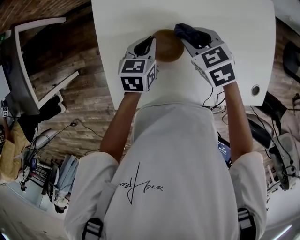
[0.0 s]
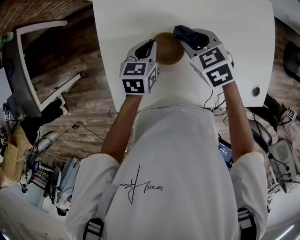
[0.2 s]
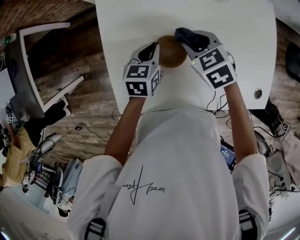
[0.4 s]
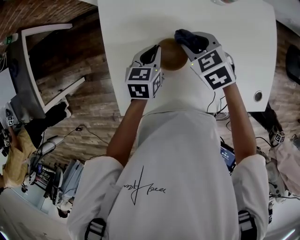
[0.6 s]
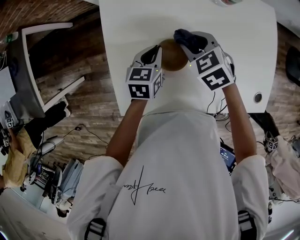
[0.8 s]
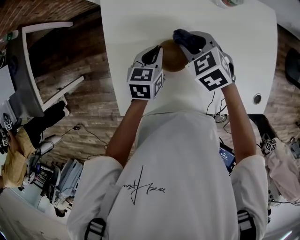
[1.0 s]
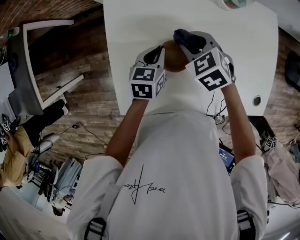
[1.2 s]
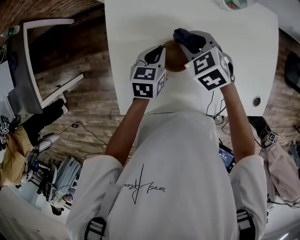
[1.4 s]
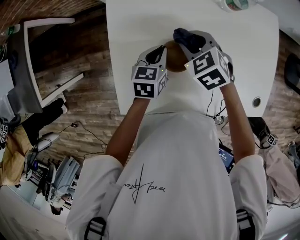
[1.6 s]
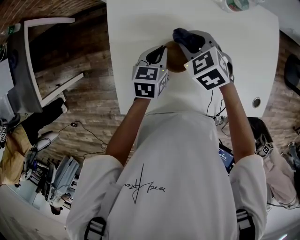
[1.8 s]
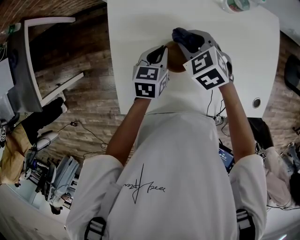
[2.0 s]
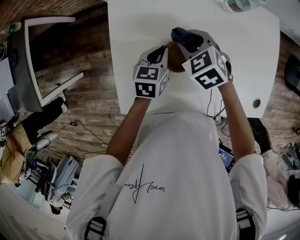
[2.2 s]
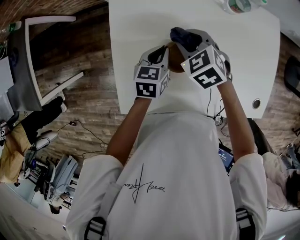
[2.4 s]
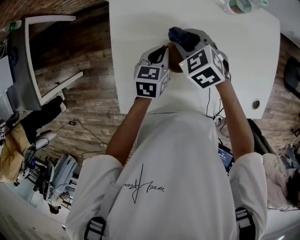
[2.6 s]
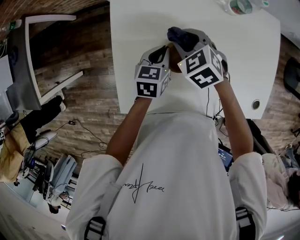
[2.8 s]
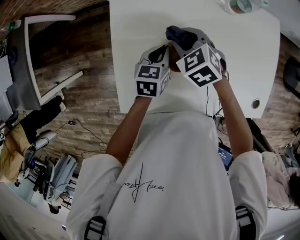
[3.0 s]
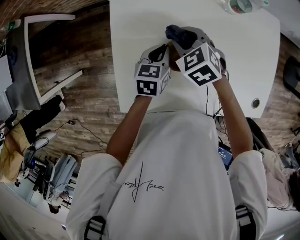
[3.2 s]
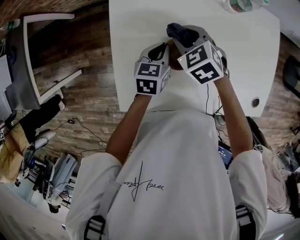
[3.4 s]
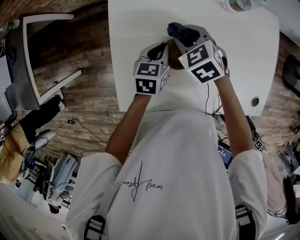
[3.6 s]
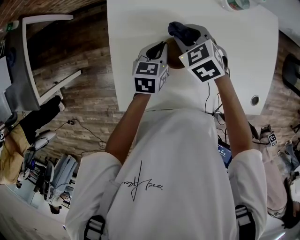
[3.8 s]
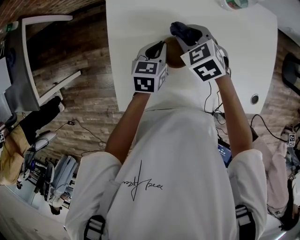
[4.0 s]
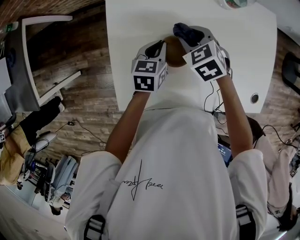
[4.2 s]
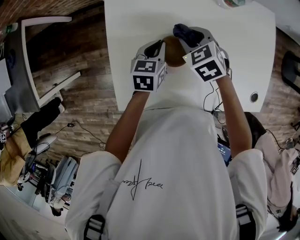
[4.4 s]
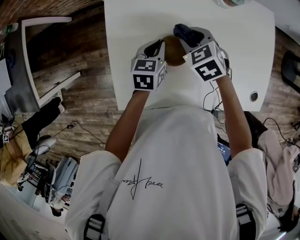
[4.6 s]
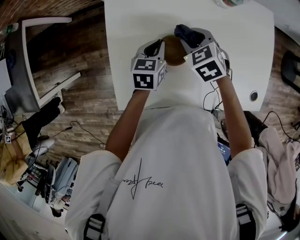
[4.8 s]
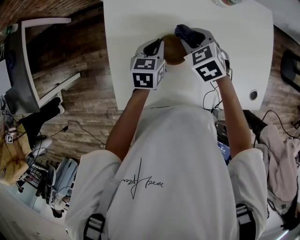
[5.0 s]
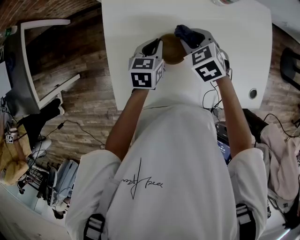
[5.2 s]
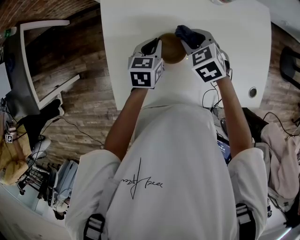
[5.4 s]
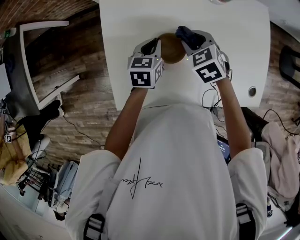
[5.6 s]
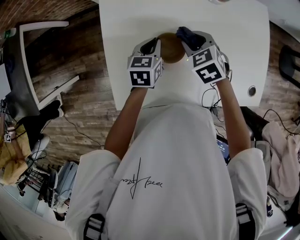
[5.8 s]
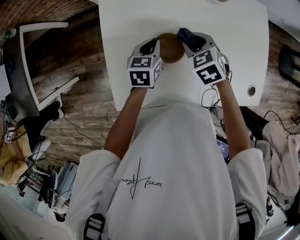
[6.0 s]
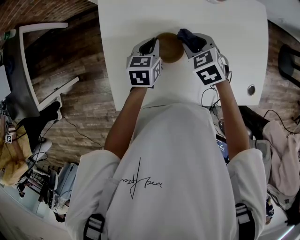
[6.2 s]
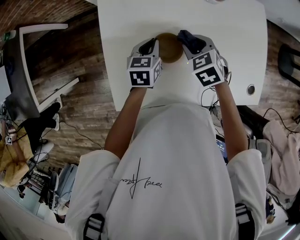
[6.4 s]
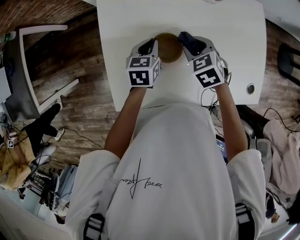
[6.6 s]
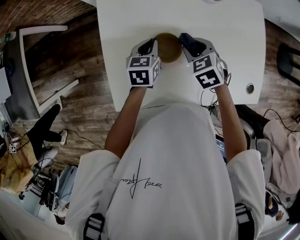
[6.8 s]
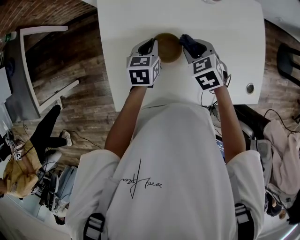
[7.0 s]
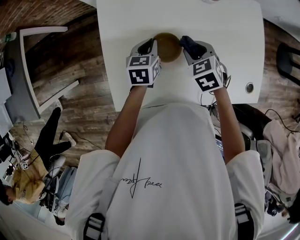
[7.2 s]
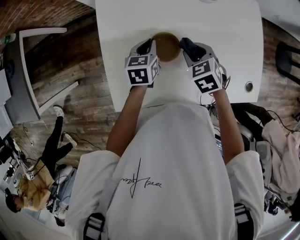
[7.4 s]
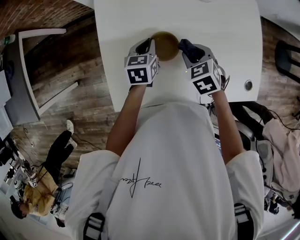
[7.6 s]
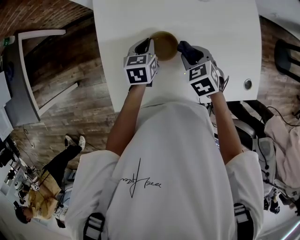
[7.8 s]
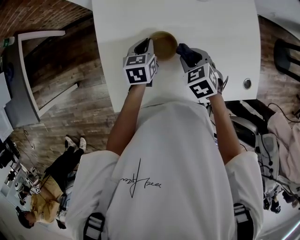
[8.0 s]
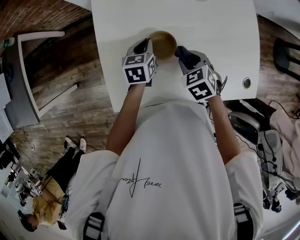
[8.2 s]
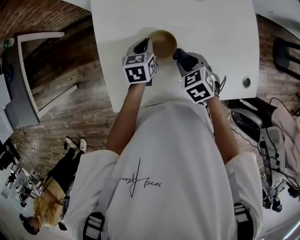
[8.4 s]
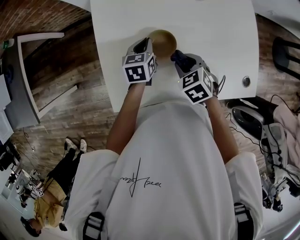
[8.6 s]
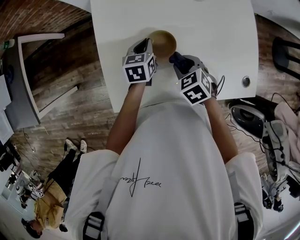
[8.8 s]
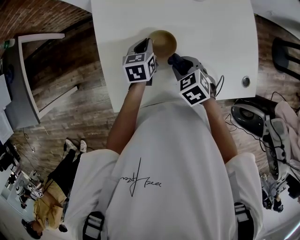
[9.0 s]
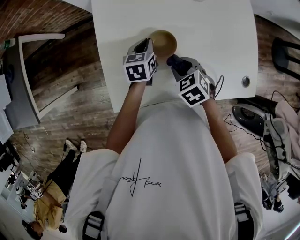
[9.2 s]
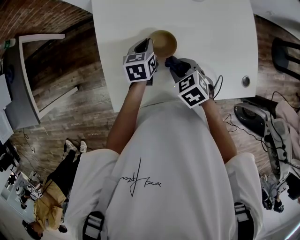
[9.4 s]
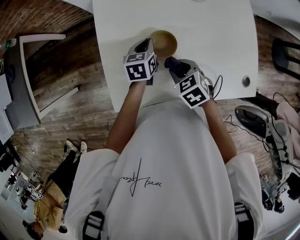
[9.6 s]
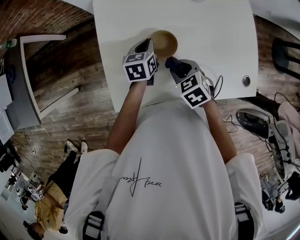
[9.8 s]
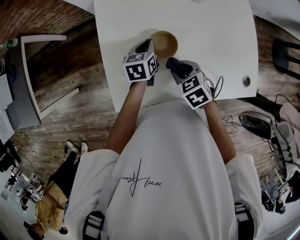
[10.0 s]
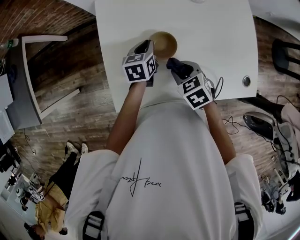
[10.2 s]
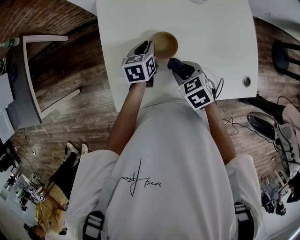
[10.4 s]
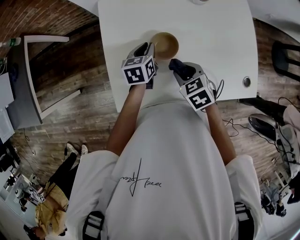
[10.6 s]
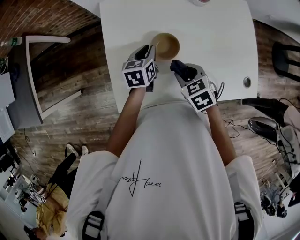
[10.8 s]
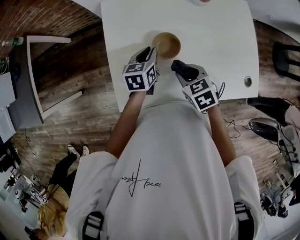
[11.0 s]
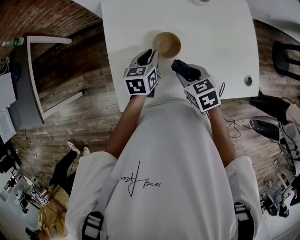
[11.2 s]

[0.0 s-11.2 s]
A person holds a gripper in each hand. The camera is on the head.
0.0 to 1.6 s: The right gripper shifts about 10 cm to the left and forward.
1.6 to 3.2 s: There are only small adjustments of the grippers.
3.2 to 4.8 s: The right gripper goes roughly 5 cm to the right.
4.8 to 6.4 s: The right gripper shifts about 5 cm to the right.
6.4 to 8.0 s: The right gripper heads backward, covering roughly 5 cm.
8.0 to 9.6 s: The right gripper shifts by some 5 cm.
9.6 to 11.2 s: The left gripper moves approximately 5 cm.

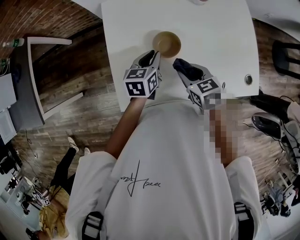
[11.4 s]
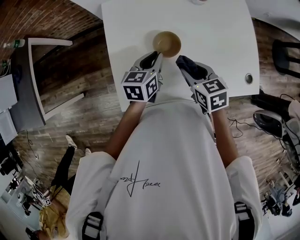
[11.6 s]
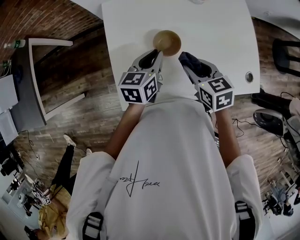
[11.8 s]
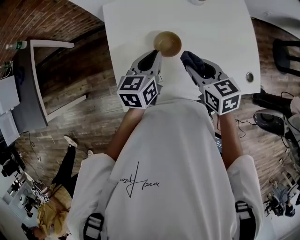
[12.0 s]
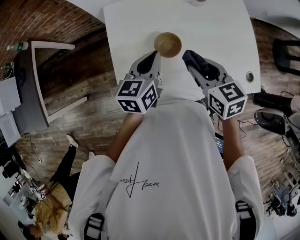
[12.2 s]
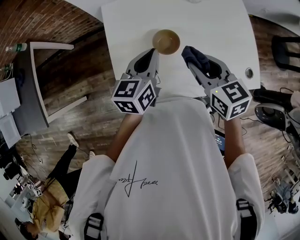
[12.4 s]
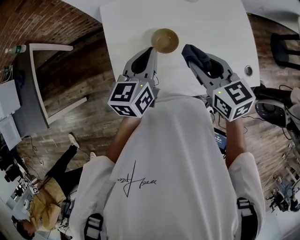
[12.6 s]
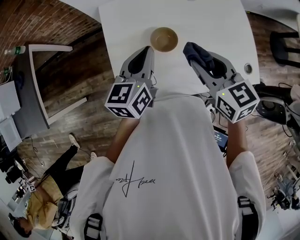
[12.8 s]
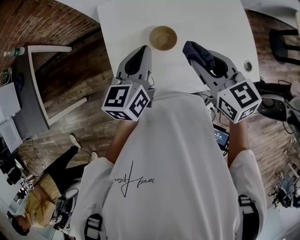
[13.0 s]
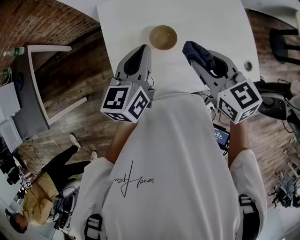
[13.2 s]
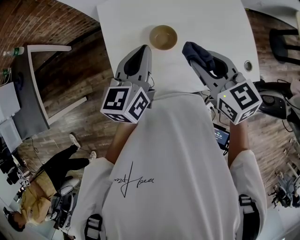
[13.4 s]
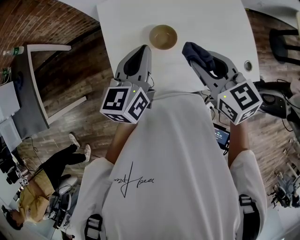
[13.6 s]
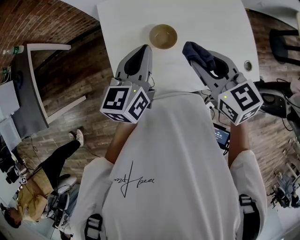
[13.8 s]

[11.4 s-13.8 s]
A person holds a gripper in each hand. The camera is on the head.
11.4 to 12.6 s: The two grippers go approximately 15 cm upward. The right gripper turns by approximately 20 degrees.
12.6 to 13.8 s: There are only small adjustments of the grippers.

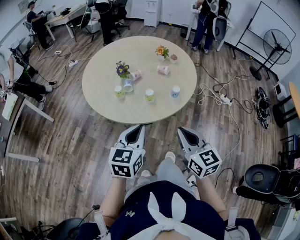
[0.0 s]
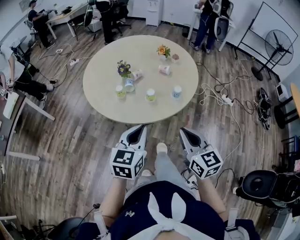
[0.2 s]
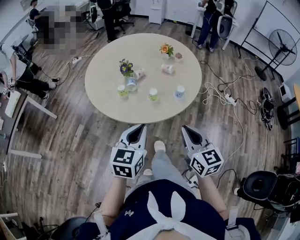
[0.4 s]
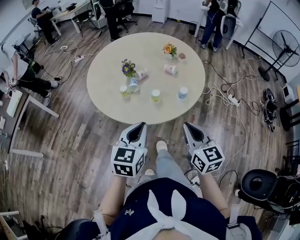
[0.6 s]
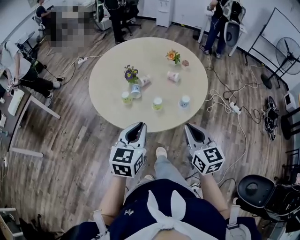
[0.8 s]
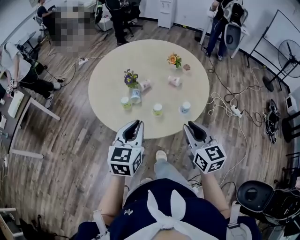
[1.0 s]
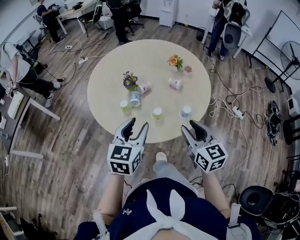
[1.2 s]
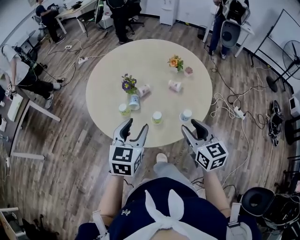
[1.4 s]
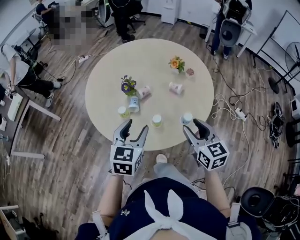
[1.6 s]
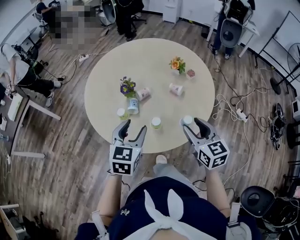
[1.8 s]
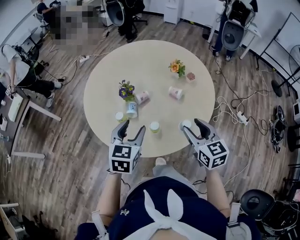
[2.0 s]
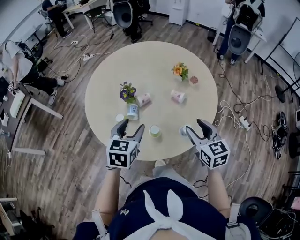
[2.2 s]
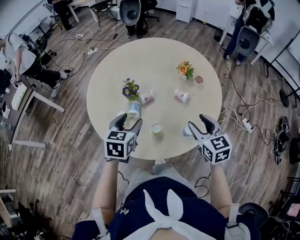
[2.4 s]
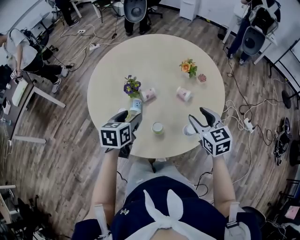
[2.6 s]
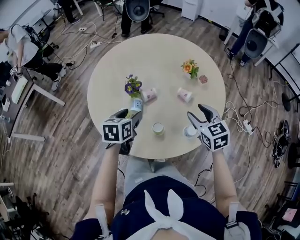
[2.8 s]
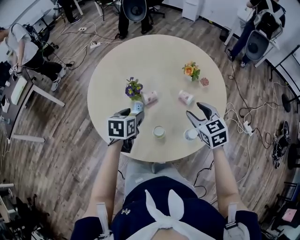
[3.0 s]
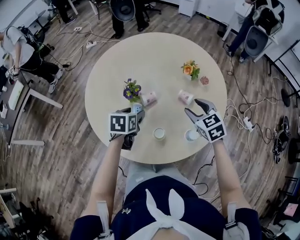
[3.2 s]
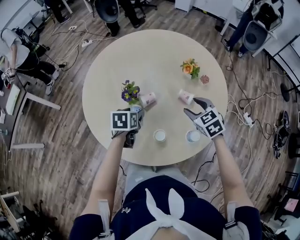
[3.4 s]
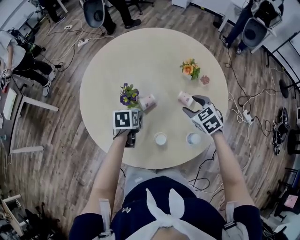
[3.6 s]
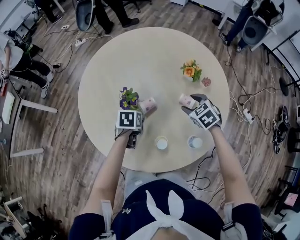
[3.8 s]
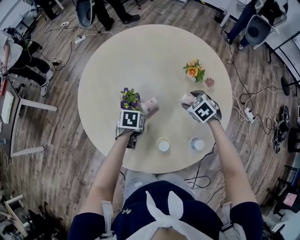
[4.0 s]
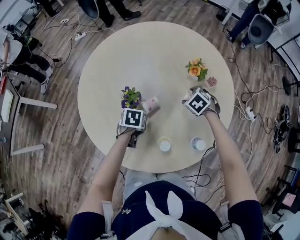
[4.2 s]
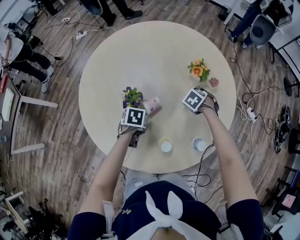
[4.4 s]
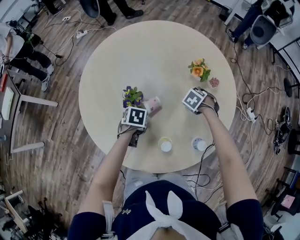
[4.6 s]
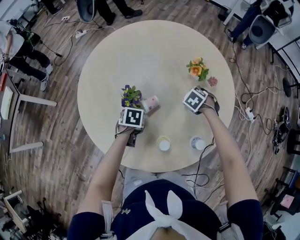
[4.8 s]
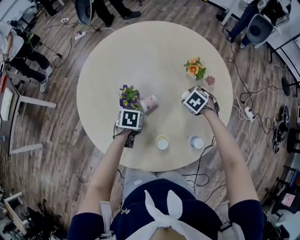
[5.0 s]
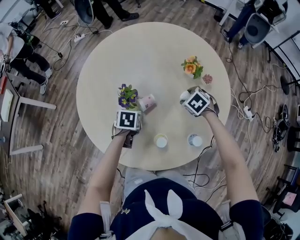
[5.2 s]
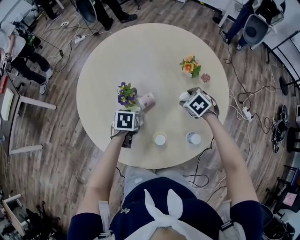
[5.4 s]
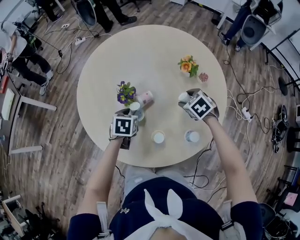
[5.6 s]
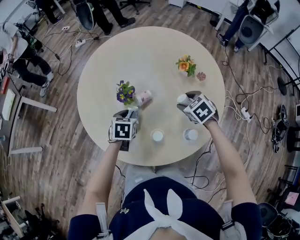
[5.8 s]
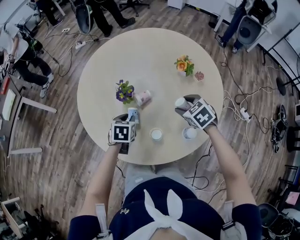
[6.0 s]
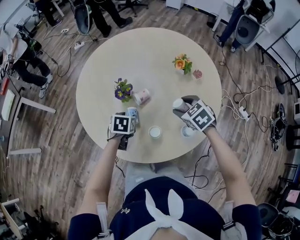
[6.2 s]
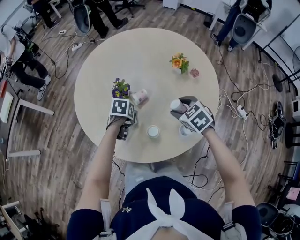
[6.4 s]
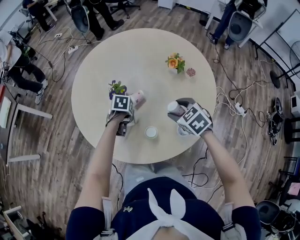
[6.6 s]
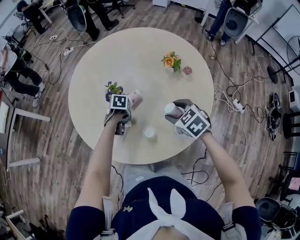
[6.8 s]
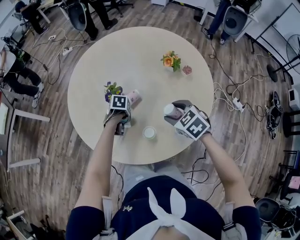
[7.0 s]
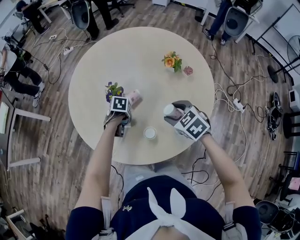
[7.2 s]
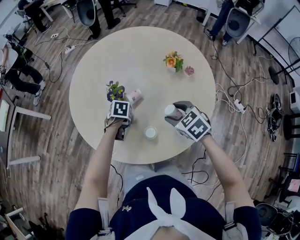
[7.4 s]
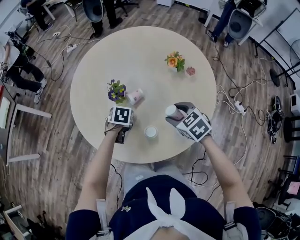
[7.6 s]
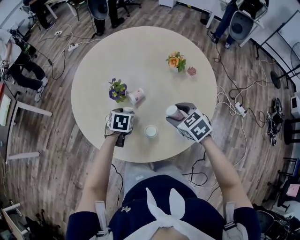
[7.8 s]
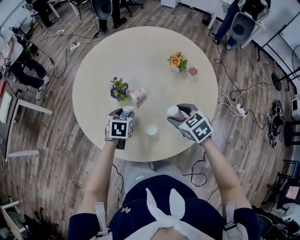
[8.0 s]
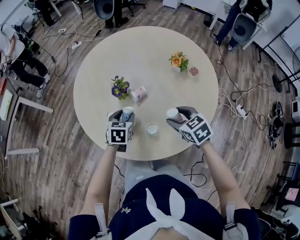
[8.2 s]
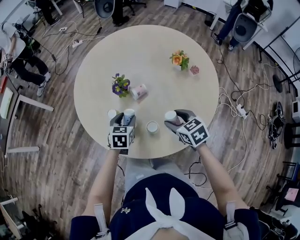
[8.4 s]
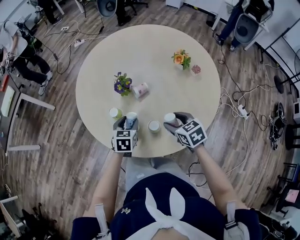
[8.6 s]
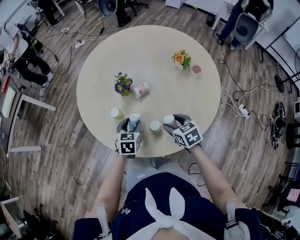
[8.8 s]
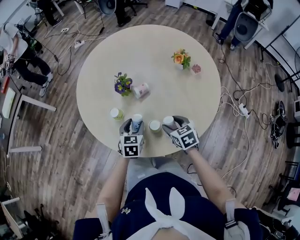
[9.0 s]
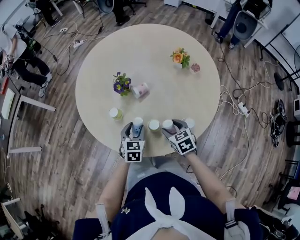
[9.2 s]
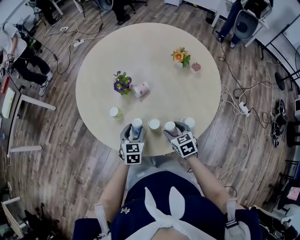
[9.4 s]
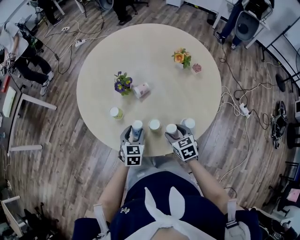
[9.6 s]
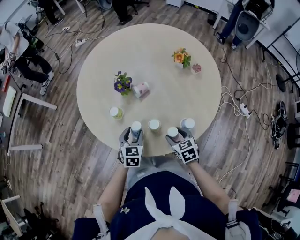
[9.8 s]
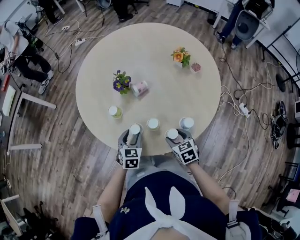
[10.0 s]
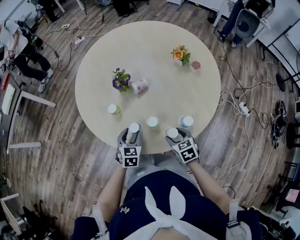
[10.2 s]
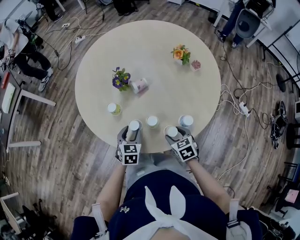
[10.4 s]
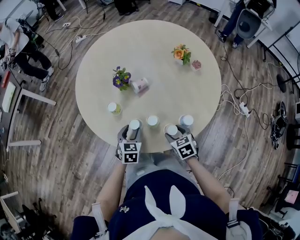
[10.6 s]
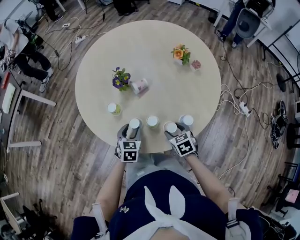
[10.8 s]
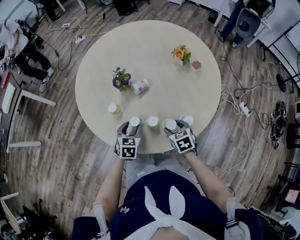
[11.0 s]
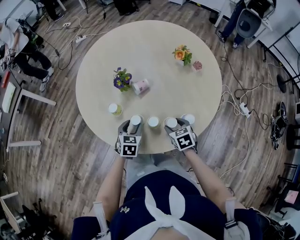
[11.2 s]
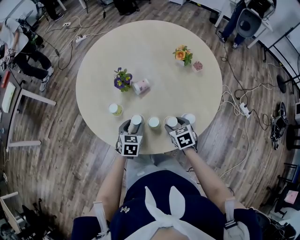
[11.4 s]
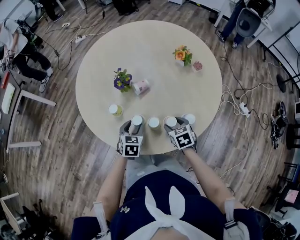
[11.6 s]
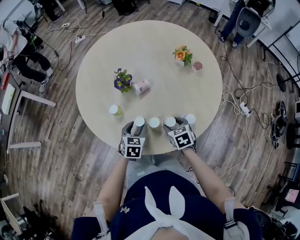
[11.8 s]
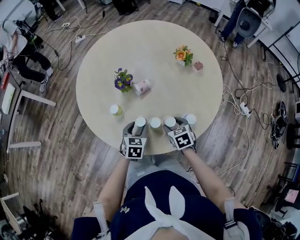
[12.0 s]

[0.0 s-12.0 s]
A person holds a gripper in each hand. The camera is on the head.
0.0 to 1.6 s: The grippers both shift forward by some 20 cm. The right gripper opens up, while the left gripper opens up.
1.6 to 3.0 s: The left gripper goes about 20 cm forward and downward, and swivels some 30 degrees; the right gripper goes approximately 20 cm forward, and swivels some 20 degrees.
3.0 to 4.4 s: The grippers both shift downward by some 20 cm. The left gripper rotates some 30 degrees. Meanwhile the right gripper angles its fingers downward, by about 50 degrees.
4.4 to 6.0 s: The right gripper travels upward by some 15 cm, and turns by approximately 30 degrees. Meanwhile the left gripper moves upward, some 5 cm, turns by some 20 degrees, and closes up.
6.0 to 7.6 s: The left gripper opens, while the right gripper ends up some 5 cm from where it was.
7.6 to 9.0 s: The right gripper goes roughly 10 cm downward. The left gripper shifts roughly 10 cm backward, and rotates about 30 degrees.
9.0 to 10.4 s: Both grippers move backward, about 5 cm.
10.4 to 12.0 s: The right gripper heads forward, covering roughly 5 cm.
